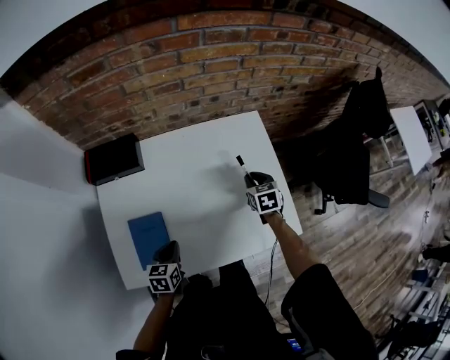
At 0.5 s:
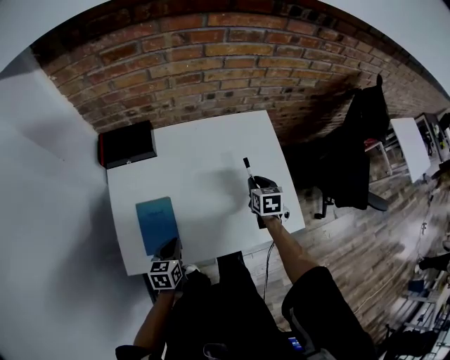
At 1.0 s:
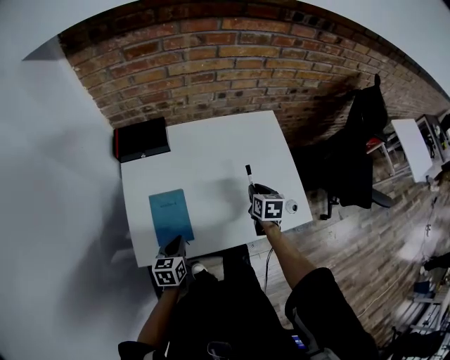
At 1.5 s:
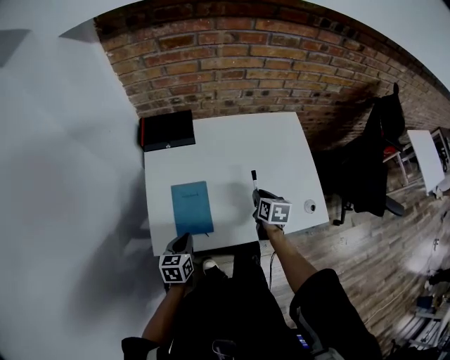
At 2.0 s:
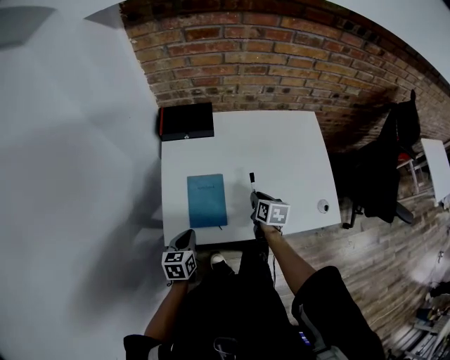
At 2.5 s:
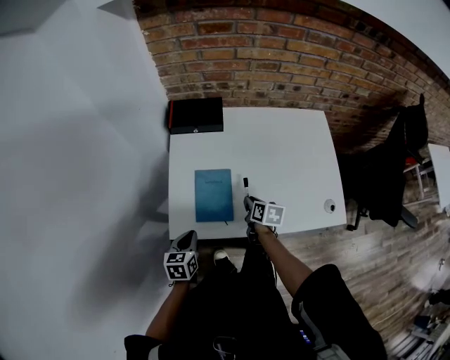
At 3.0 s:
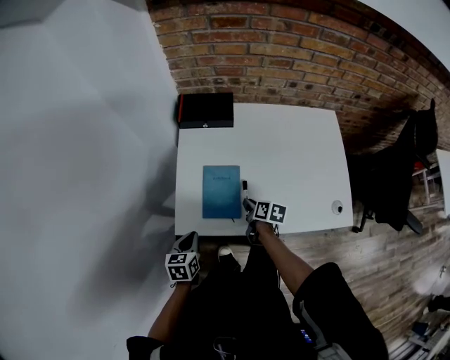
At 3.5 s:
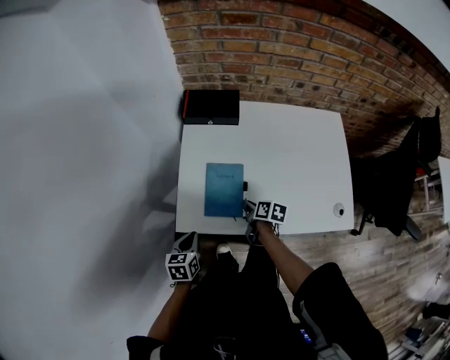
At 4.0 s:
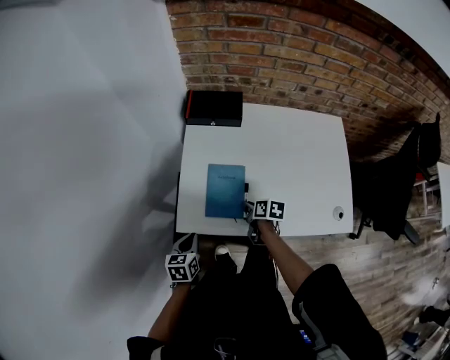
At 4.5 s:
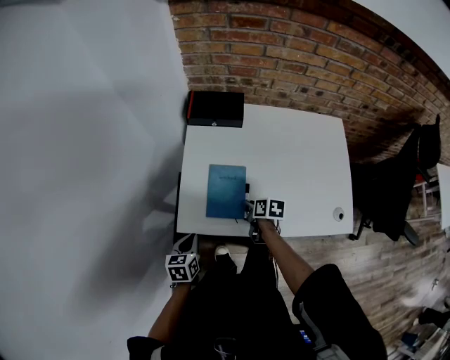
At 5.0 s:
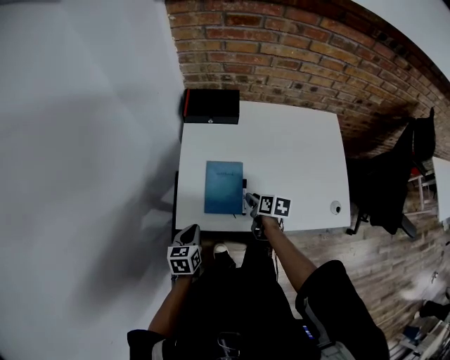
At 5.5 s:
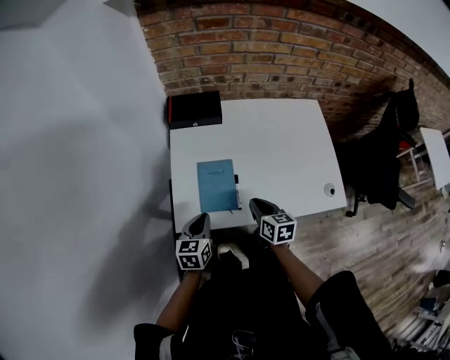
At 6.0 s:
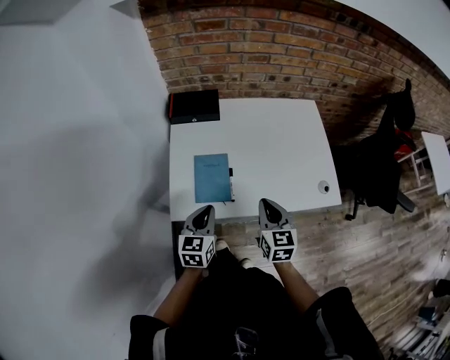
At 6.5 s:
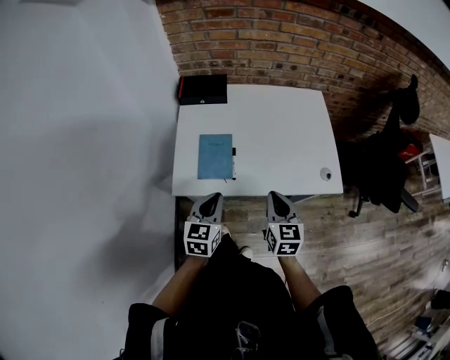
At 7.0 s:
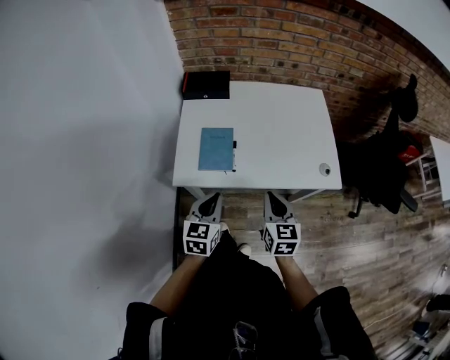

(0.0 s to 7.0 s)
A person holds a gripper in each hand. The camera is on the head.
0.0 s - 2.0 s: The two grippers go roughly 25 cm to the left and backward. The right gripper turns by some 20 degrees.
2.0 s - 3.5 s: The left gripper moves some 5 cm; the right gripper moves to the left and downward, some 15 cm, and rotates roughly 30 degrees.
3.5 s - 5.0 s: The grippers move only a little.
5.0 s - 7.0 s: The left gripper heads upward, to the right and backward, covering roughly 20 cm, and changes its angle by approximately 20 degrees. Meanwhile the right gripper travels backward, upward and to the right by approximately 30 cm, changes its angle by some 50 degrees, and closes its fingers.

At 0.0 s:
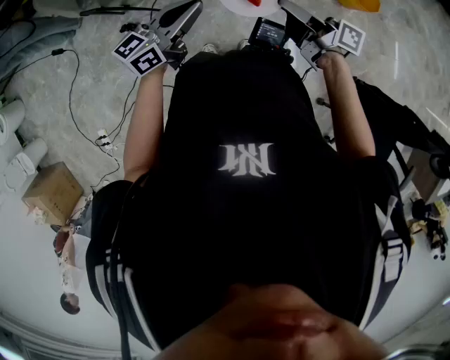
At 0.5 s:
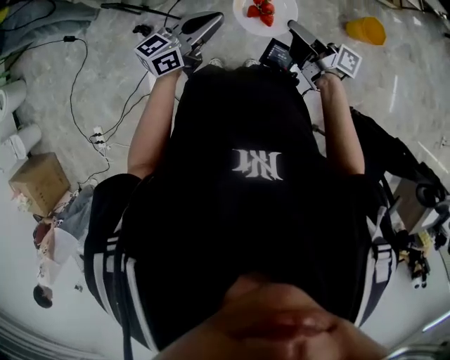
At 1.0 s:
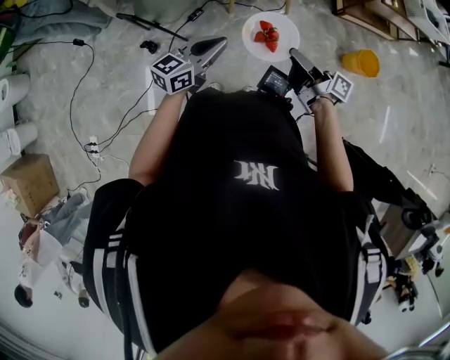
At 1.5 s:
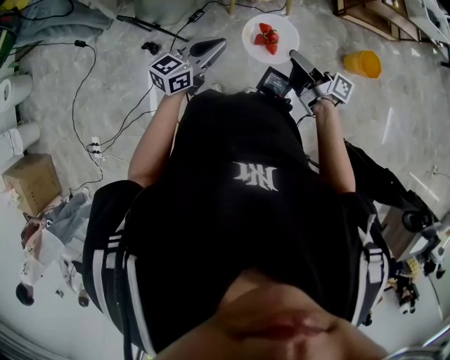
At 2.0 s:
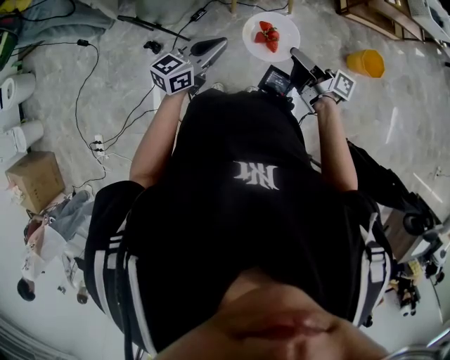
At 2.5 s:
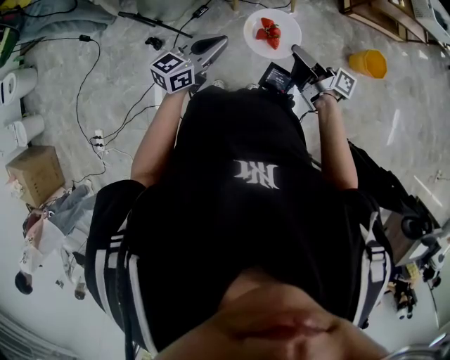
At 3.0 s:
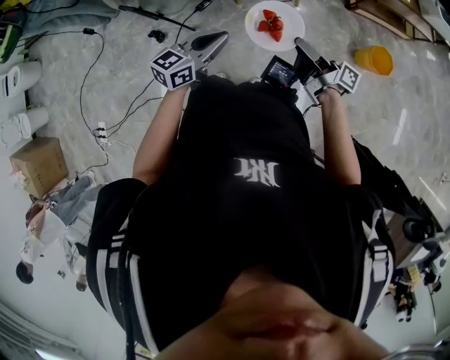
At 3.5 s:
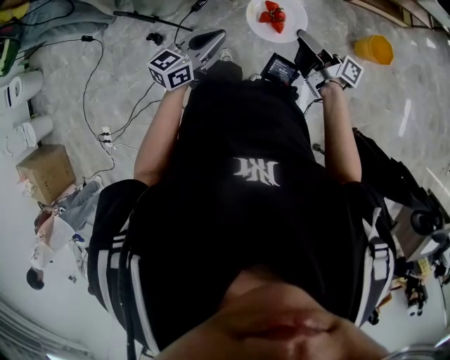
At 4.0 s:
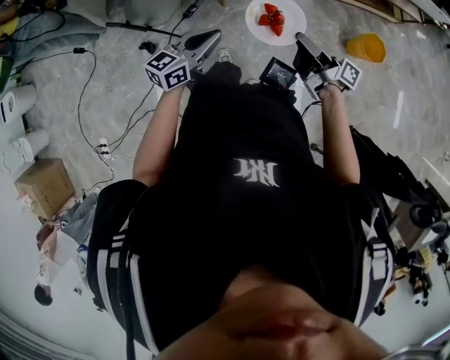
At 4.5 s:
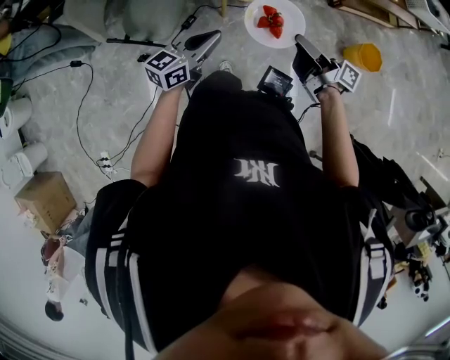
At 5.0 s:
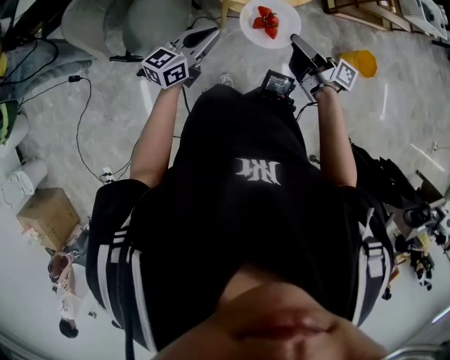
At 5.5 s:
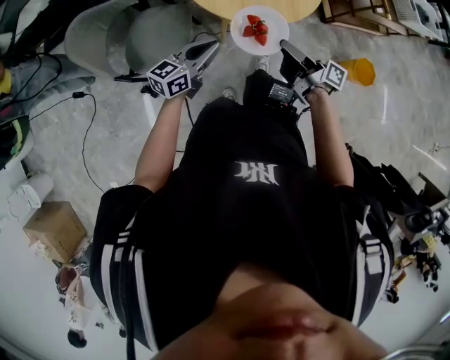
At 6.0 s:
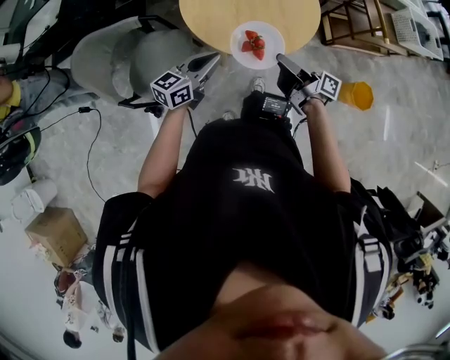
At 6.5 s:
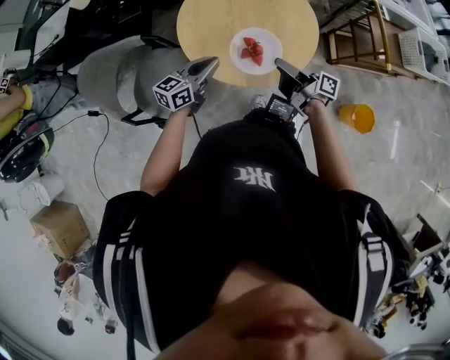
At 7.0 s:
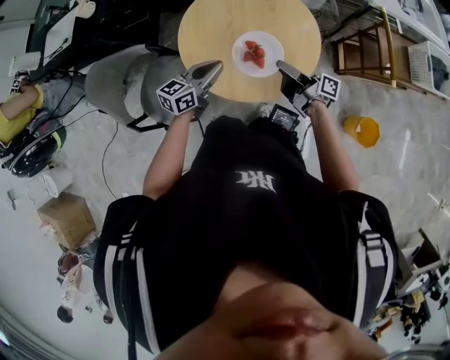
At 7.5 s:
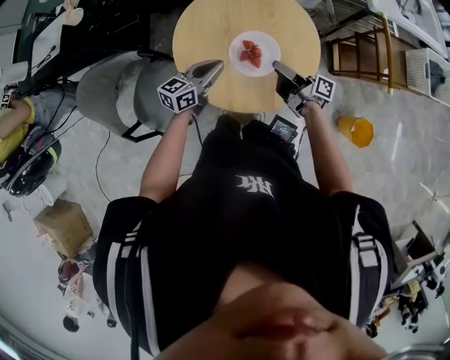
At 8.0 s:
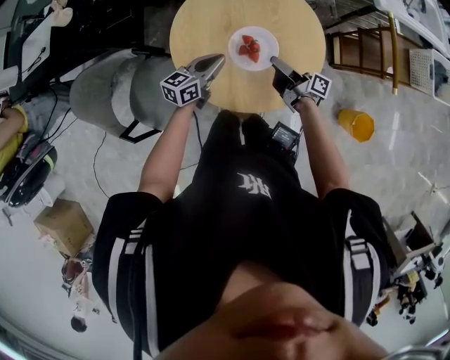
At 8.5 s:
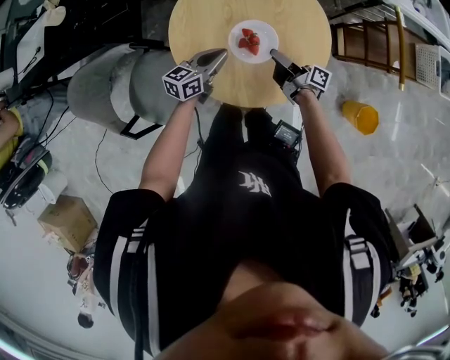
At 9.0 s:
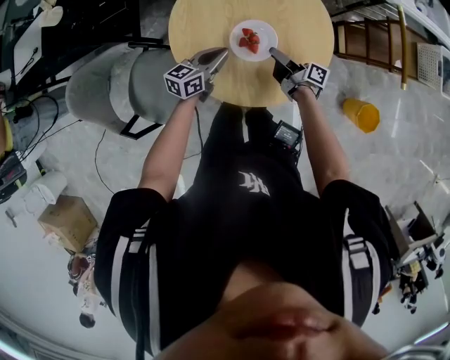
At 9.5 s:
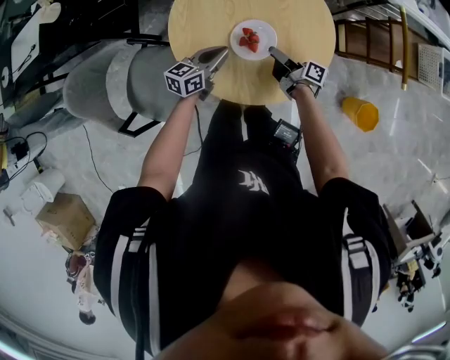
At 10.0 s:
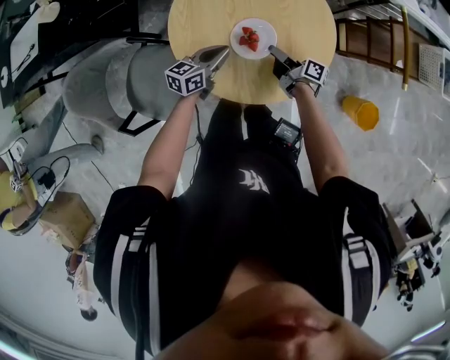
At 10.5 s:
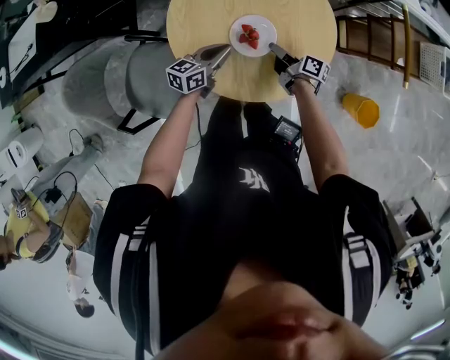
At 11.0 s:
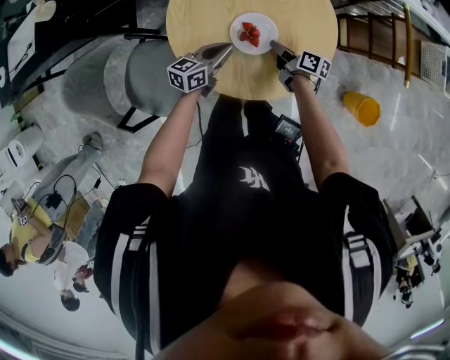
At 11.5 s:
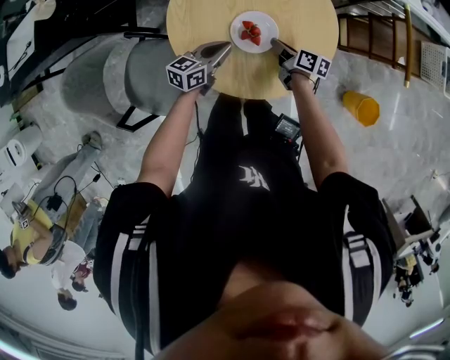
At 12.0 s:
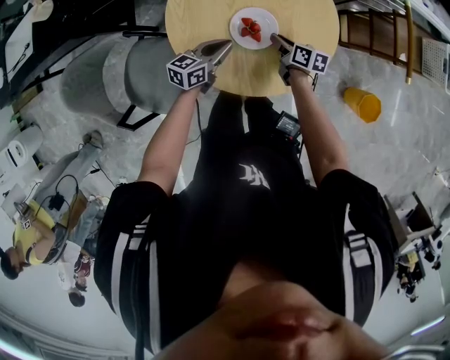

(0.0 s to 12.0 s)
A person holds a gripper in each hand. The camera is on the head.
0.0 s - 2.0 s: The grippers move only a little.
2.0 s - 4.0 s: The grippers make only small movements.
4.0 s - 6.0 s: The left gripper heads forward, covering approximately 30 cm; the right gripper goes roughly 30 cm forward and to the left.
6.0 s - 8.0 s: The left gripper heads forward, covering roughly 20 cm, while the right gripper goes some 25 cm forward and downward.
8.0 s - 10.0 s: The left gripper travels downward by approximately 5 cm. Meanwhile the right gripper is displaced downward by about 10 cm.
10.0 s - 12.0 s: The right gripper turns by approximately 40 degrees.

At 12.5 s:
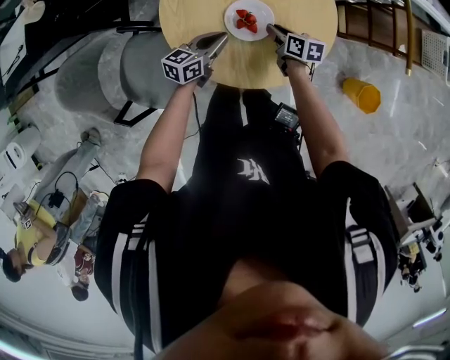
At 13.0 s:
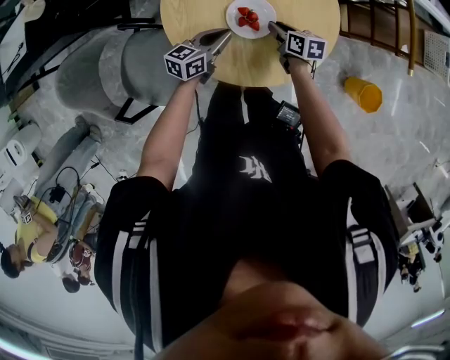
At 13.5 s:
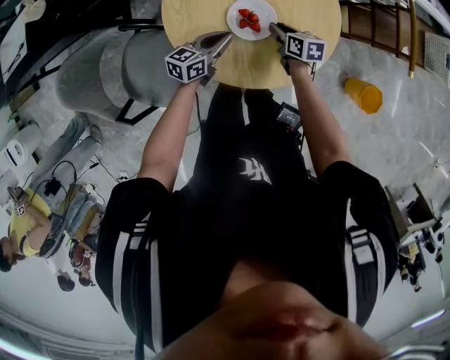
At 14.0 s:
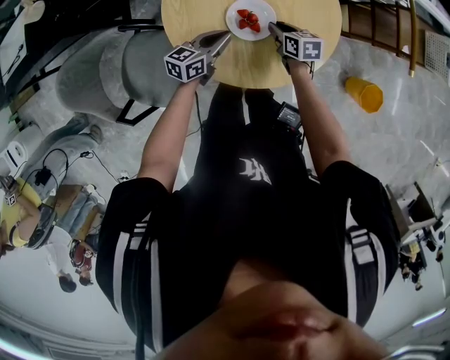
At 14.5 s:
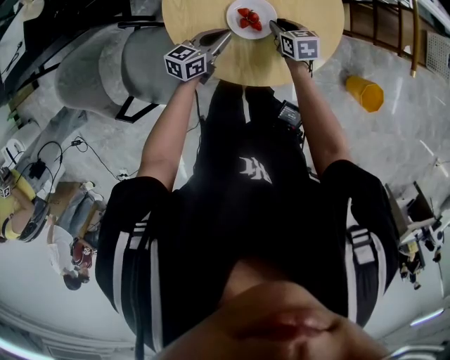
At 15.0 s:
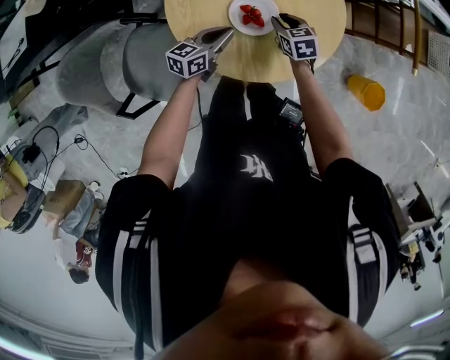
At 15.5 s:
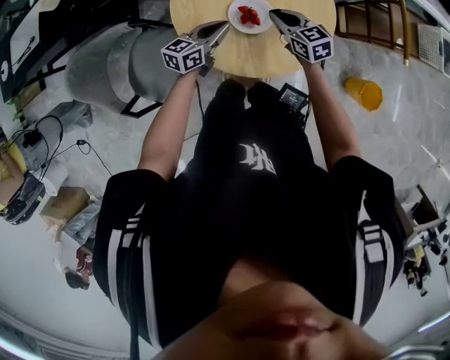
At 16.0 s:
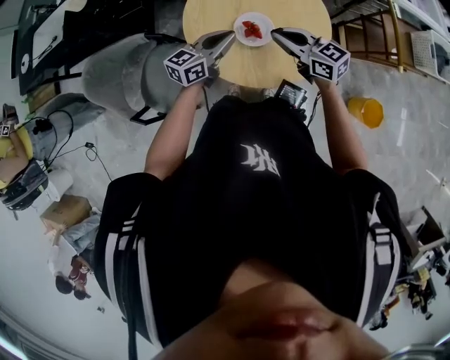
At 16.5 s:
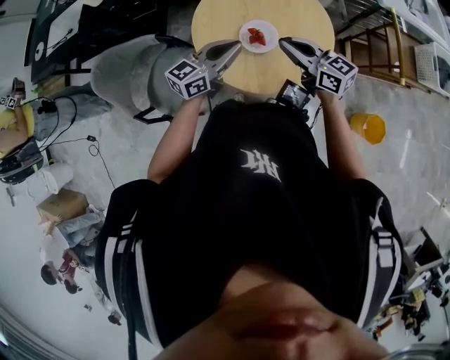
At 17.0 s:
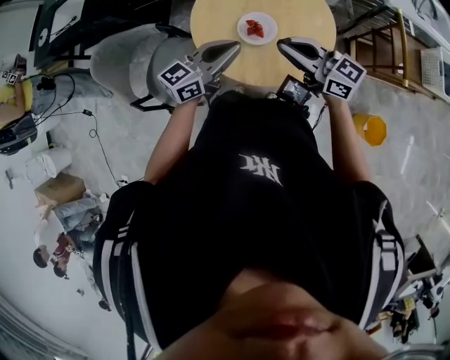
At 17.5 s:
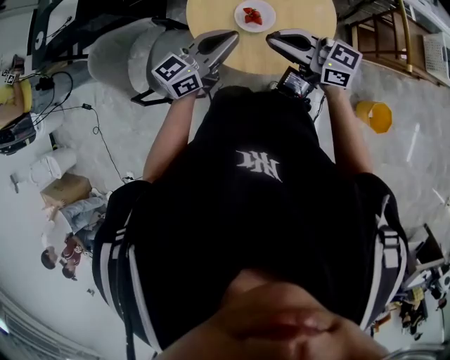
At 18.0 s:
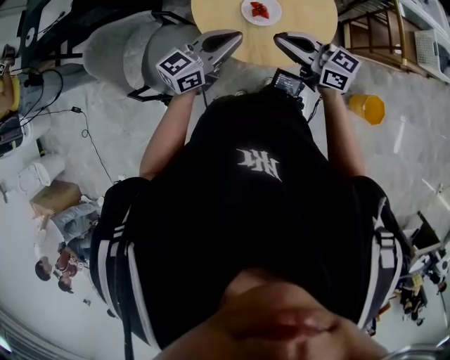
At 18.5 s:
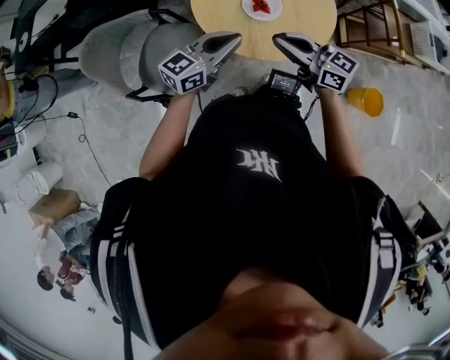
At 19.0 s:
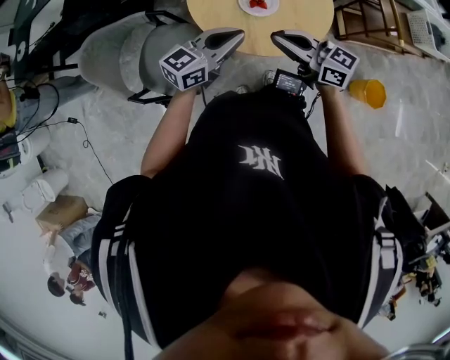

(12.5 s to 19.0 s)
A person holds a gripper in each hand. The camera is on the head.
12.5 s - 14.5 s: The right gripper turns by approximately 20 degrees.
14.5 s - 17.0 s: The two grippers go some 25 cm upward. The right gripper tips its fingers upward by roughly 50 degrees, and closes its fingers, while the left gripper rotates some 20 degrees.
17.0 s - 19.0 s: The left gripper travels backward and to the left by roughly 10 cm. The right gripper goes about 10 cm to the left and backward.

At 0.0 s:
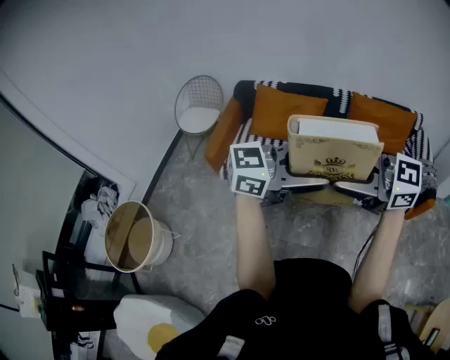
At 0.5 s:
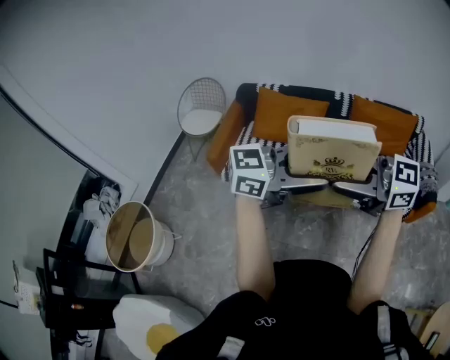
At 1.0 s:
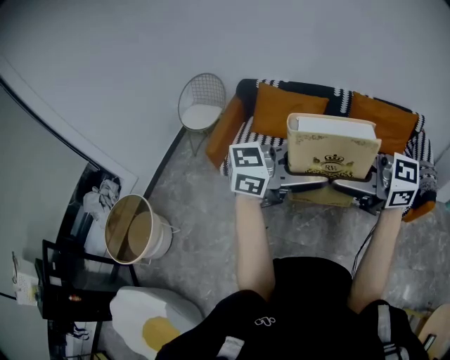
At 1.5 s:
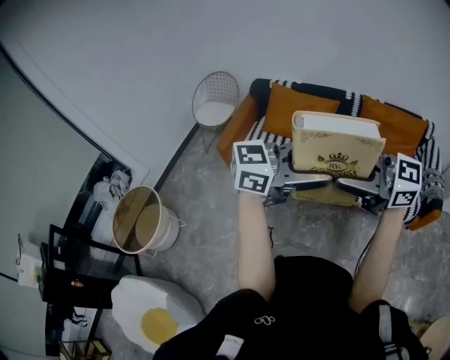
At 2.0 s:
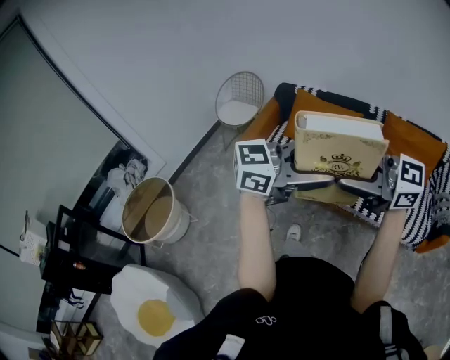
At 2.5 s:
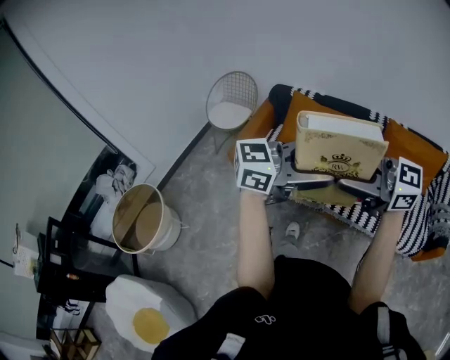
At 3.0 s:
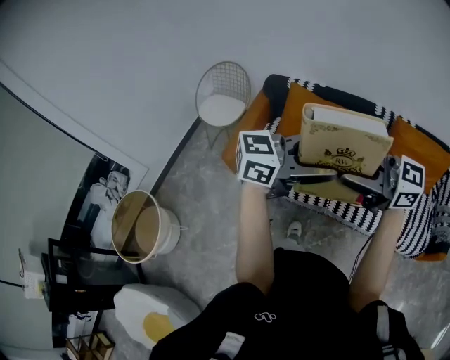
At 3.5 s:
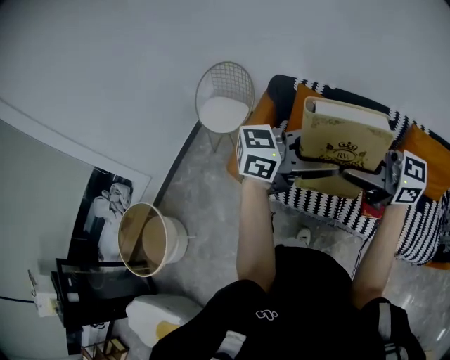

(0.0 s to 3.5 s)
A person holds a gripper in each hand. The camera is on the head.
0.0 s - 2.0 s: There are only small adjustments of the grippers.
2.0 s - 3.5 s: Both grippers are carried roughly 50 cm.
